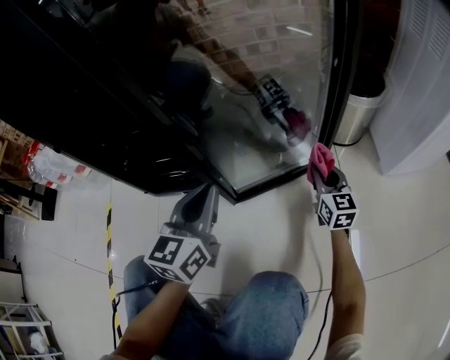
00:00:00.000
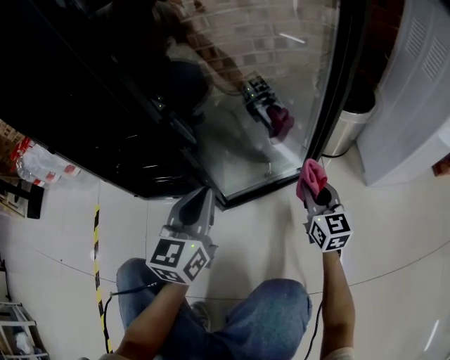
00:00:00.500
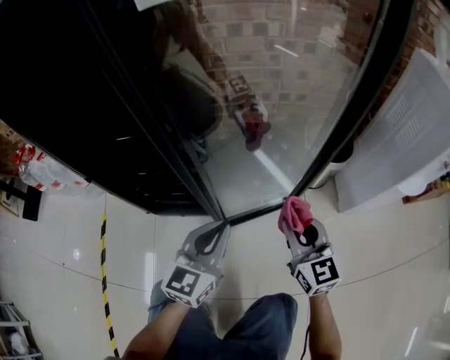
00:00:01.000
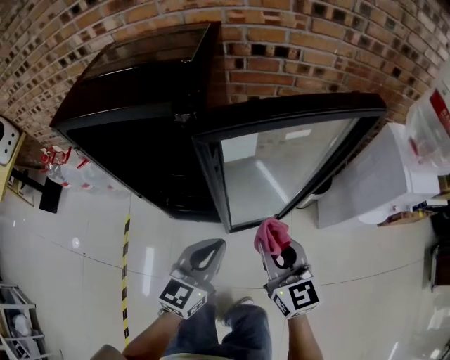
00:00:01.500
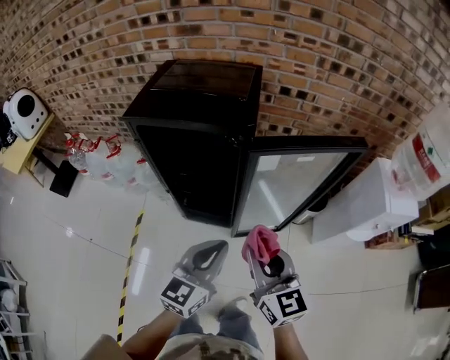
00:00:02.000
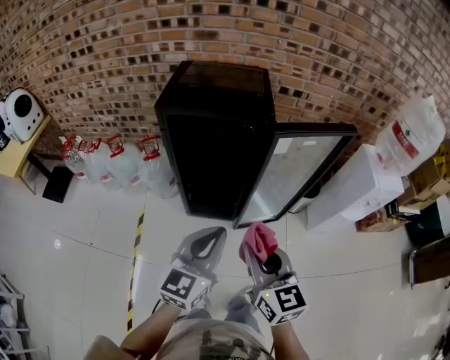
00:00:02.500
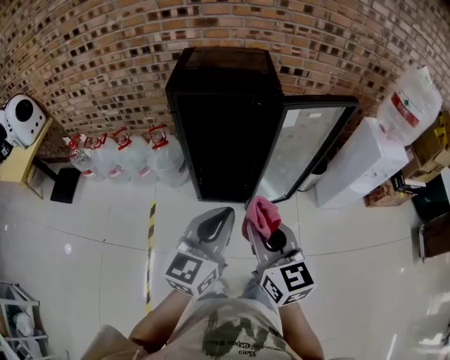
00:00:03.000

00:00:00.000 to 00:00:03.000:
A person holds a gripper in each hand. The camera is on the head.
00:00:00.000 to 00:00:01.500: Both grippers move upward, approximately 50 cm.
00:00:01.500 to 00:00:03.000: The left gripper is displaced upward, backward and to the left by about 35 cm; the right gripper shifts approximately 40 cm to the left, backward and upward.

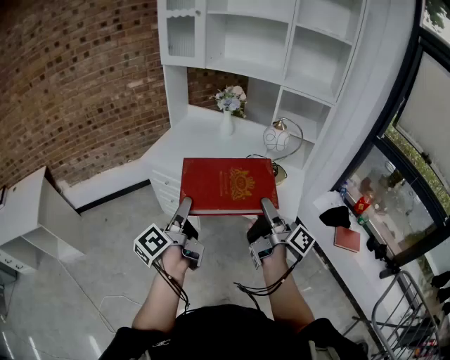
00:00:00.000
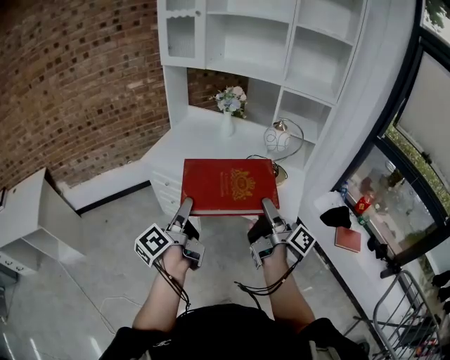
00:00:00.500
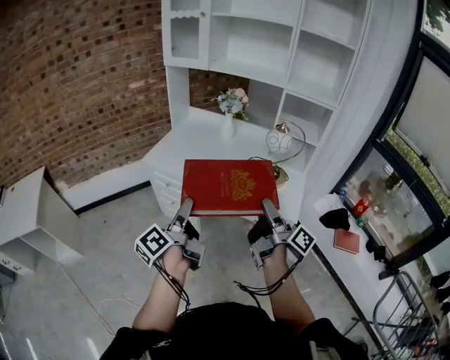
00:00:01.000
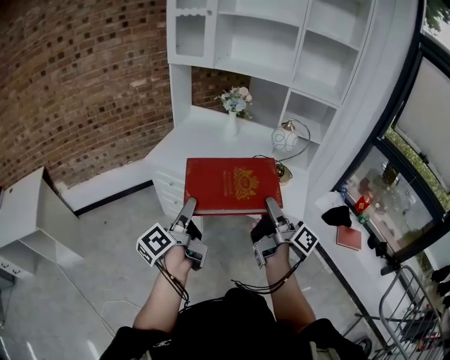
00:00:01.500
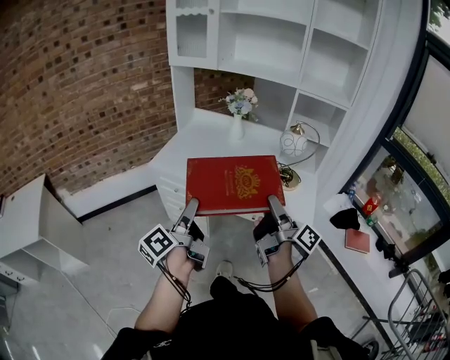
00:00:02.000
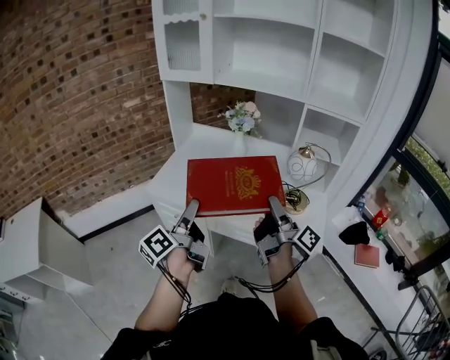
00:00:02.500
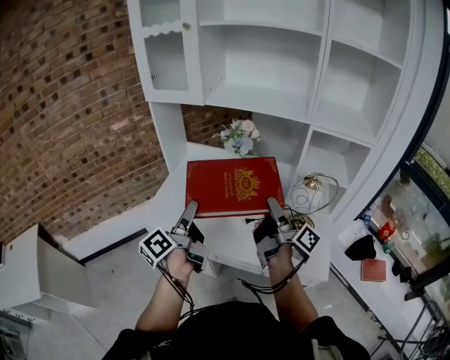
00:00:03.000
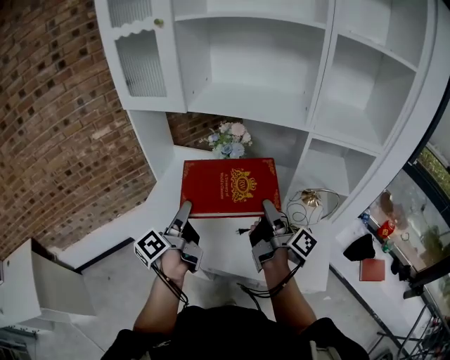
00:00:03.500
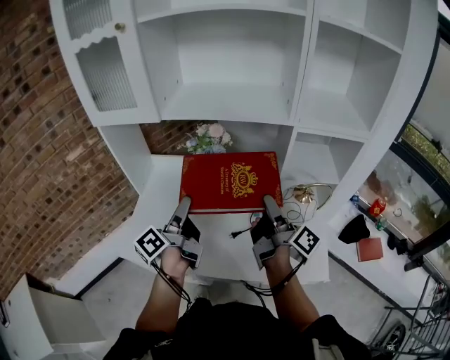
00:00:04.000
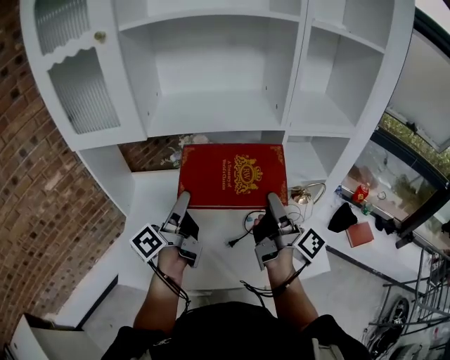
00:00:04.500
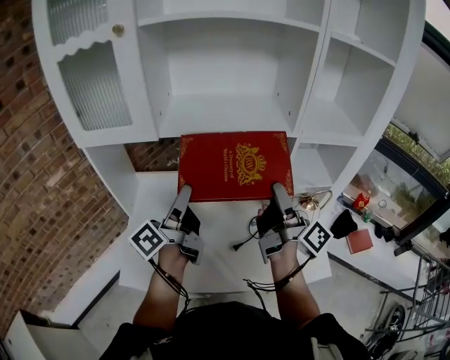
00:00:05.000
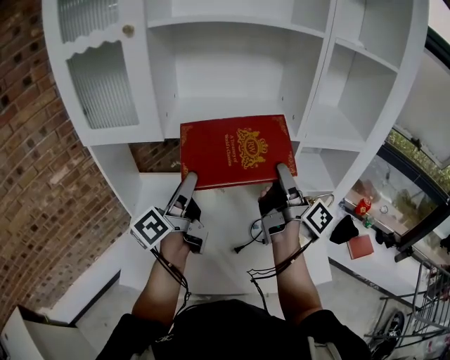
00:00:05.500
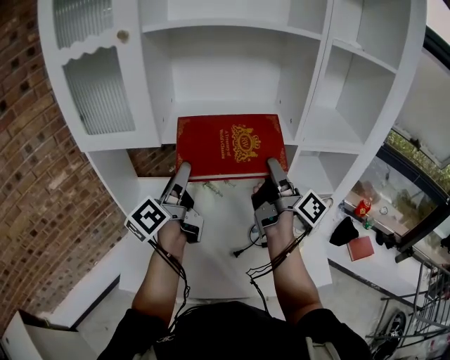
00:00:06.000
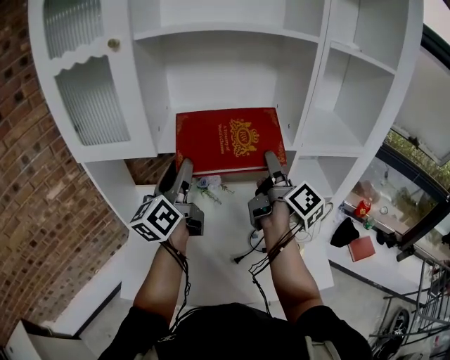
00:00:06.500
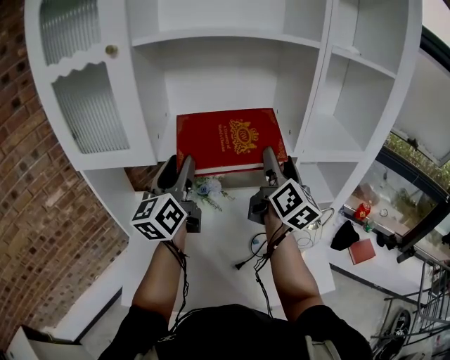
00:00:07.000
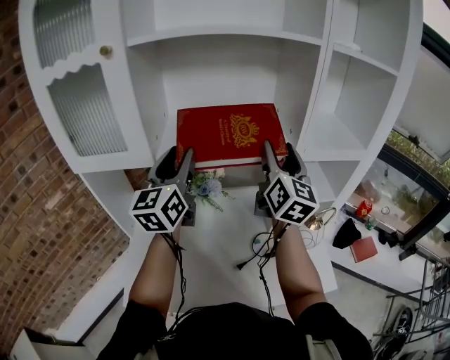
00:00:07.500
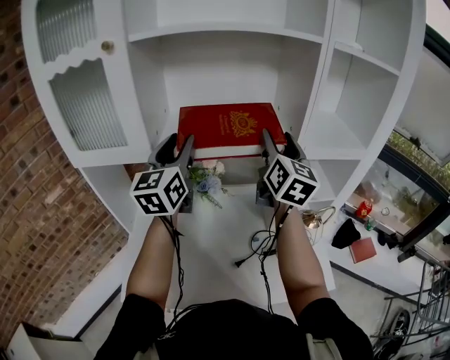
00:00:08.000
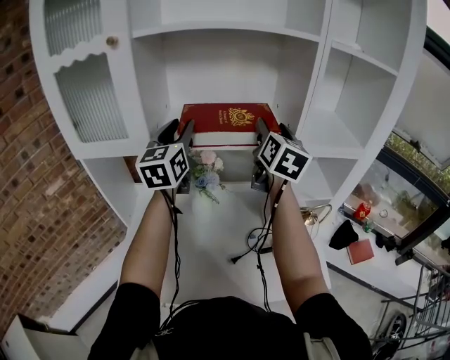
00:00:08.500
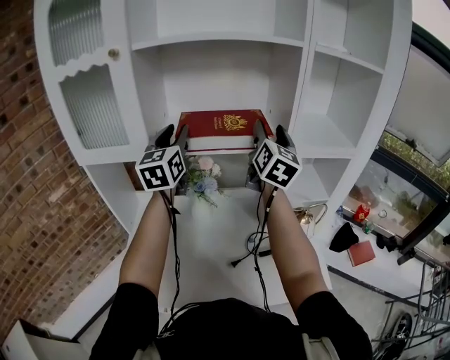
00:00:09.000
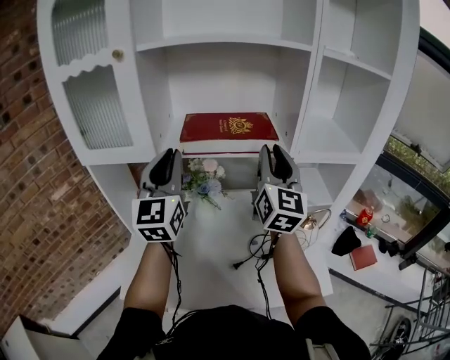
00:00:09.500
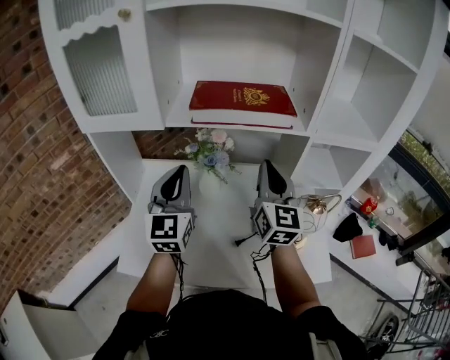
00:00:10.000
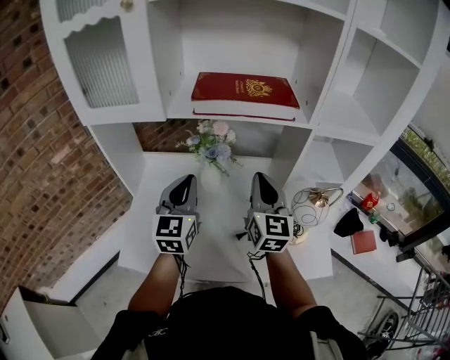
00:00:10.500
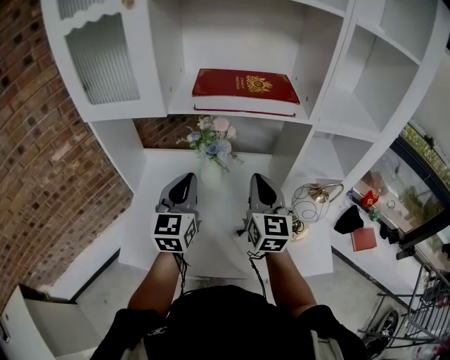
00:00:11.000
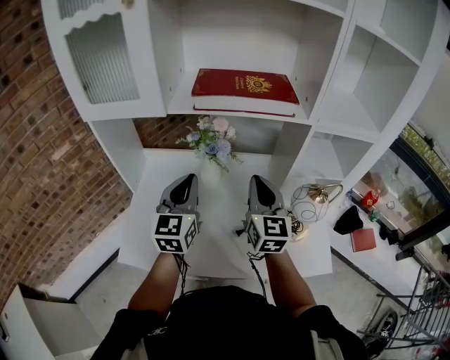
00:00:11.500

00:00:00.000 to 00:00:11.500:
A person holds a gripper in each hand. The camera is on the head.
00:00:00.000 to 00:00:02.000: Both grippers travel together to the left and forward, roughly 10 cm.
00:00:02.000 to 00:00:04.000: The grippers both shift forward by roughly 40 cm.
00:00:04.000 to 00:00:06.000: The two grippers go about 15 cm upward and forward.
00:00:06.000 to 00:00:07.500: The right gripper shifts about 10 cm upward and forward, and rotates around the line of its fingers by roughly 70 degrees, counterclockwise from behind, while the left gripper shifts roughly 10 cm forward and upward, and twists about 50 degrees clockwise, seen from behind.
00:00:07.500 to 00:00:09.500: The right gripper shifts by some 5 cm, and closes its fingers. Meanwhile the left gripper heads backward, covering approximately 5 cm, changes its angle by about 20 degrees, and closes up.
00:00:09.500 to 00:00:11.500: The two grippers go about 20 cm downward. The right gripper swivels roughly 20 degrees.

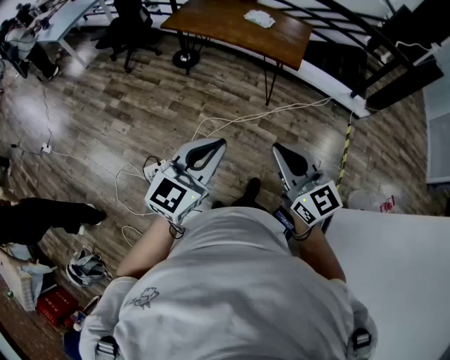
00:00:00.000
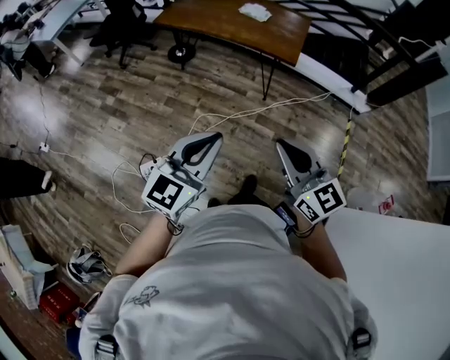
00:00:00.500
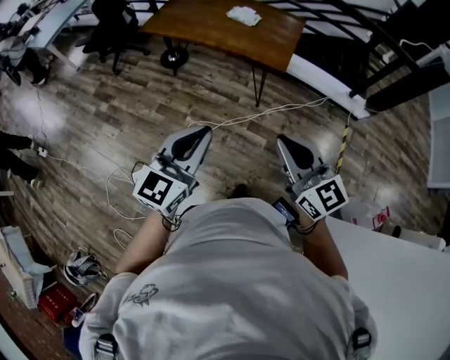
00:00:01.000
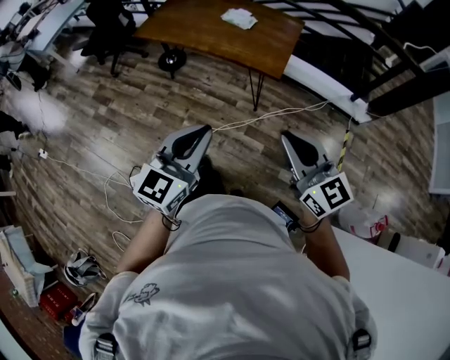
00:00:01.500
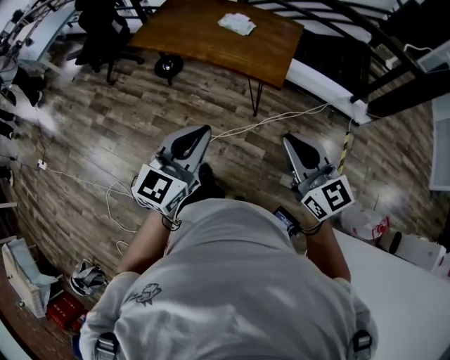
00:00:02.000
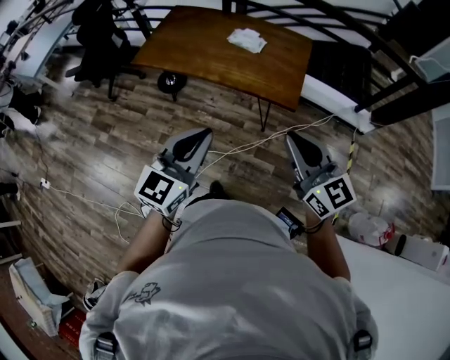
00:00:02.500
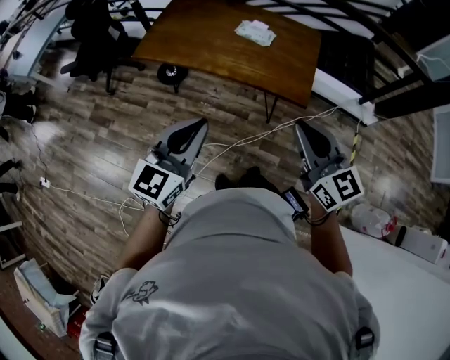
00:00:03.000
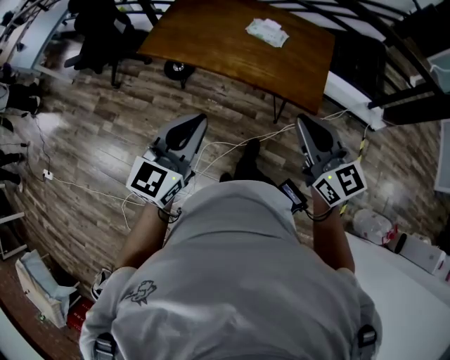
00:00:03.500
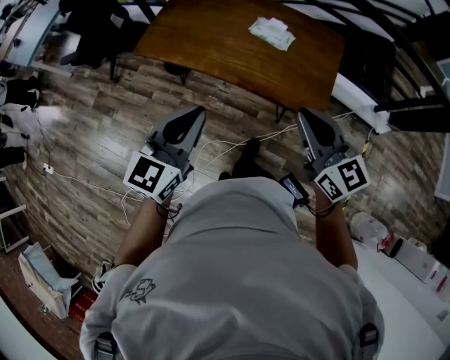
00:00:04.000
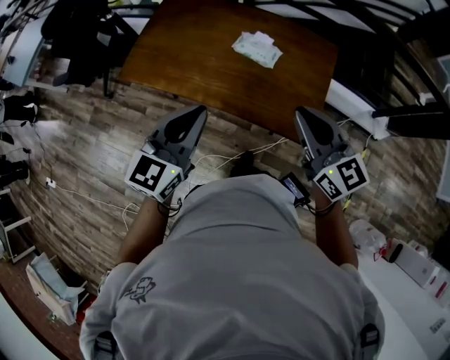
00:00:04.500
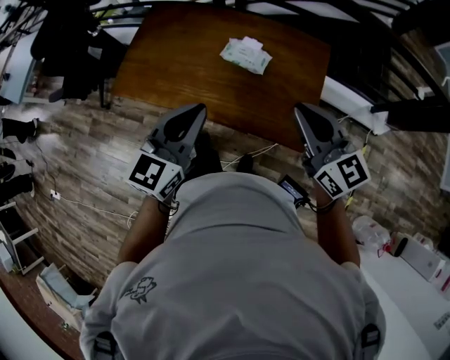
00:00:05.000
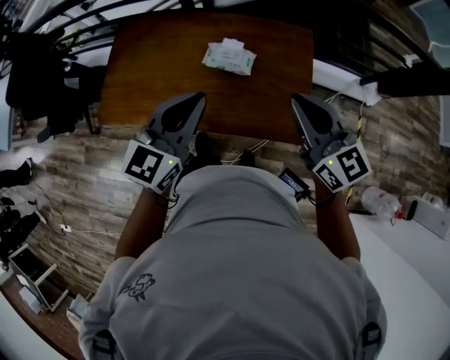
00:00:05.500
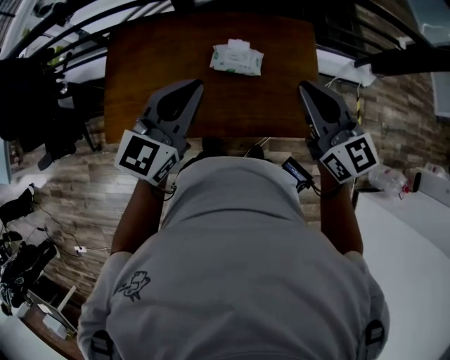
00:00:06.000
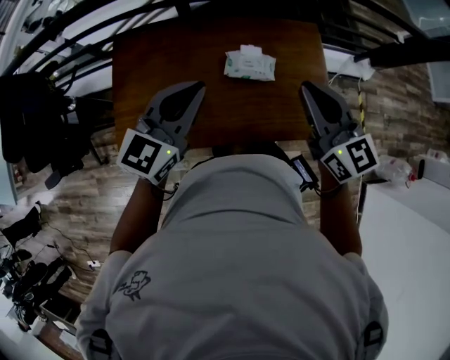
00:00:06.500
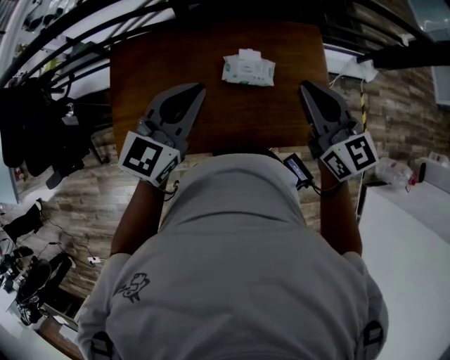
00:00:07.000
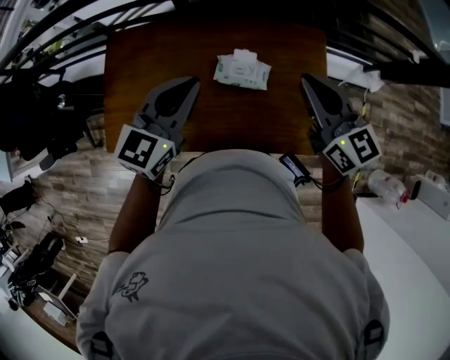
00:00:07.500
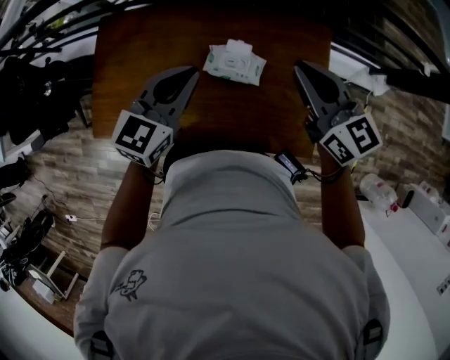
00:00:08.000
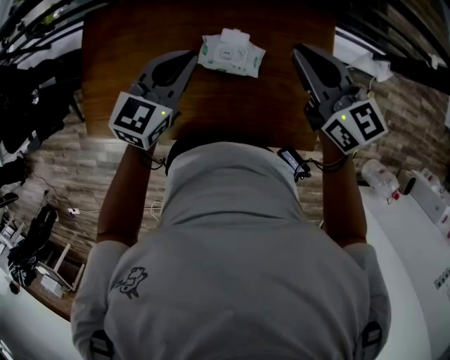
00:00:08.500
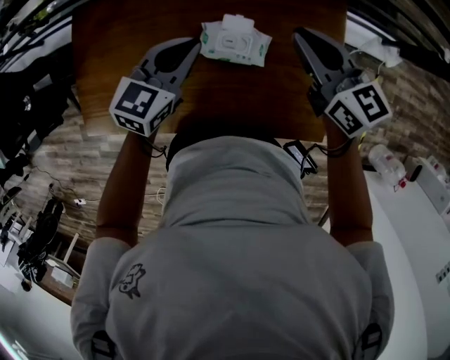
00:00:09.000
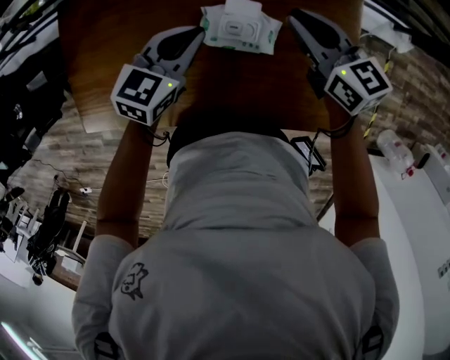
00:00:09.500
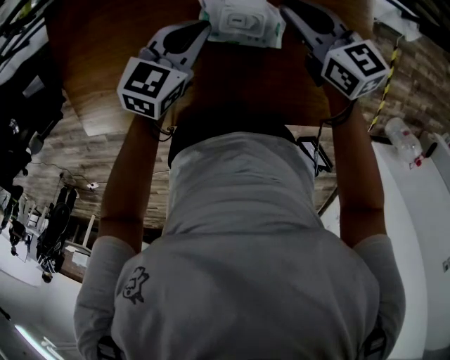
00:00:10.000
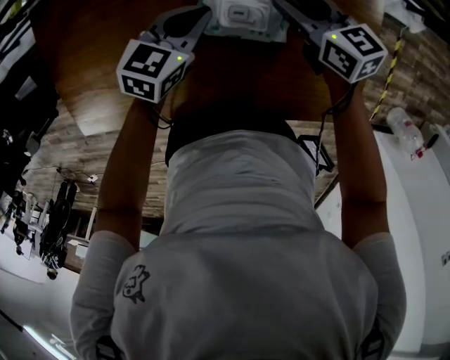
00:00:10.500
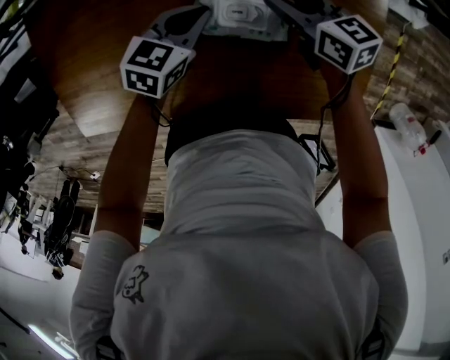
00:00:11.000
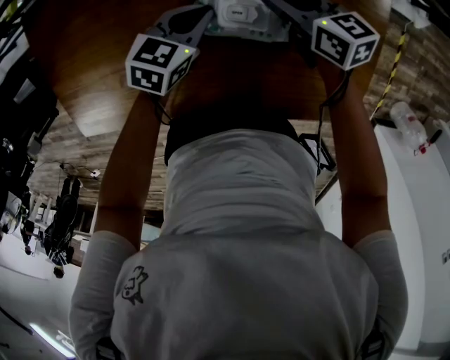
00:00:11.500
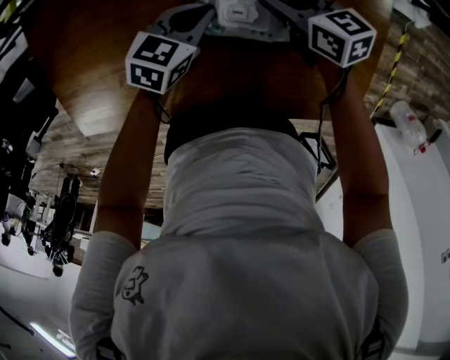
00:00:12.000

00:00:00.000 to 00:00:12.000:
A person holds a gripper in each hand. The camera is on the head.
00:00:00.000 to 00:00:02.000: The grippers both shift forward and to the right by roughly 30 cm.
00:00:02.000 to 00:00:04.000: The two grippers go approximately 35 cm forward and to the left.
00:00:04.000 to 00:00:06.000: The grippers both shift forward by roughly 30 cm. The right gripper changes its angle by roughly 20 degrees; the left gripper swivels some 20 degrees.
00:00:06.000 to 00:00:08.000: The right gripper is displaced forward by roughly 15 cm. Meanwhile the left gripper goes about 15 cm forward and downward.
00:00:08.000 to 00:00:10.000: Both grippers move downward, roughly 25 cm. The left gripper swivels approximately 20 degrees.
00:00:10.000 to 00:00:12.000: Both grippers travel together downward, some 10 cm. The right gripper opens.
